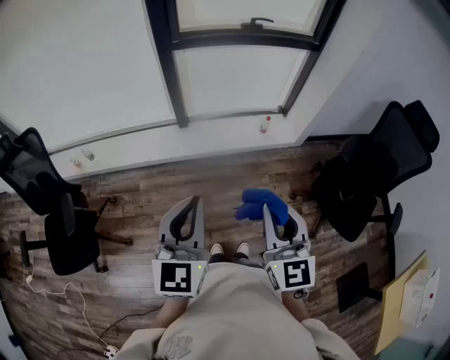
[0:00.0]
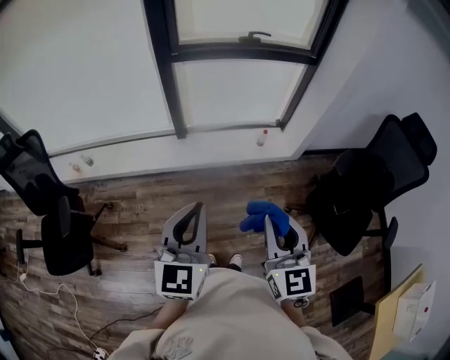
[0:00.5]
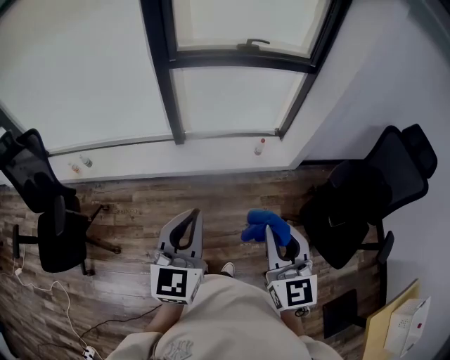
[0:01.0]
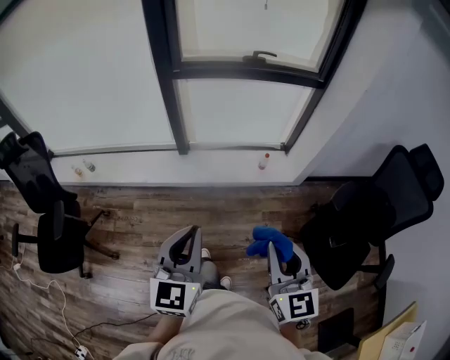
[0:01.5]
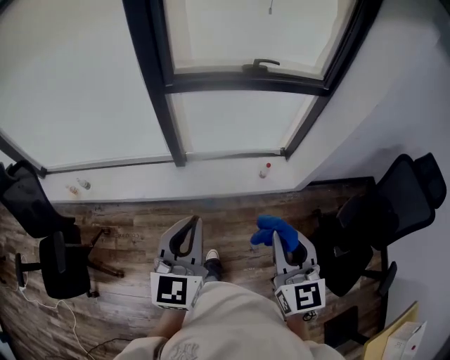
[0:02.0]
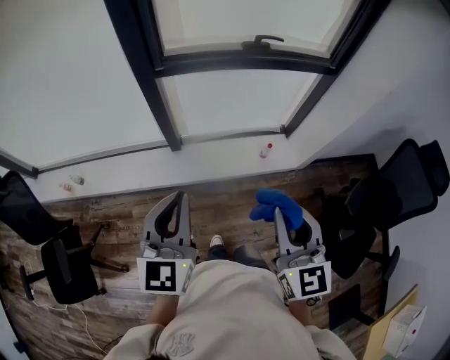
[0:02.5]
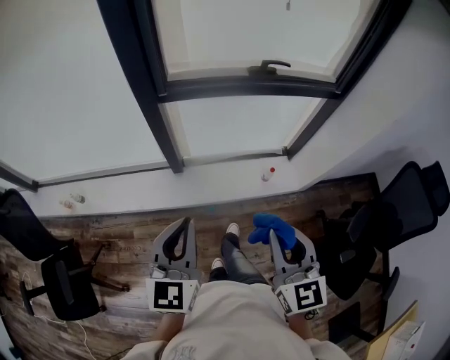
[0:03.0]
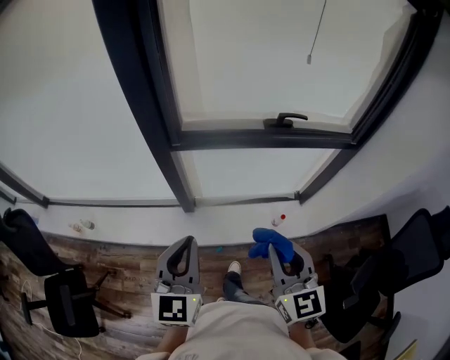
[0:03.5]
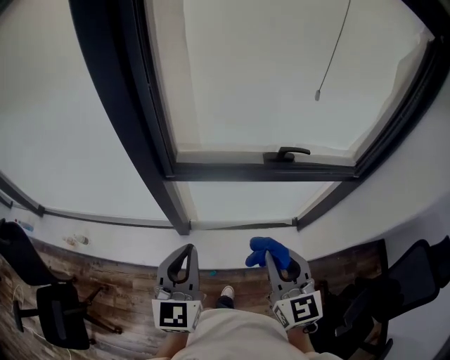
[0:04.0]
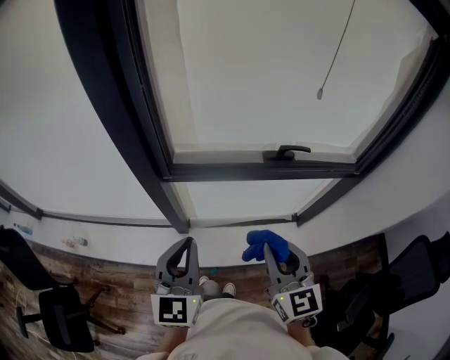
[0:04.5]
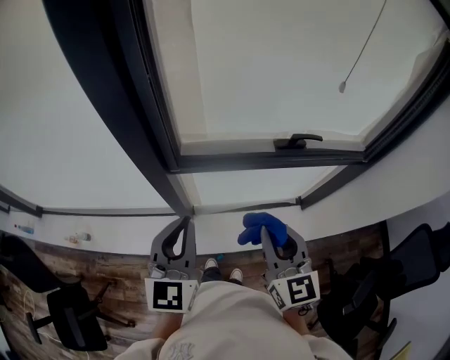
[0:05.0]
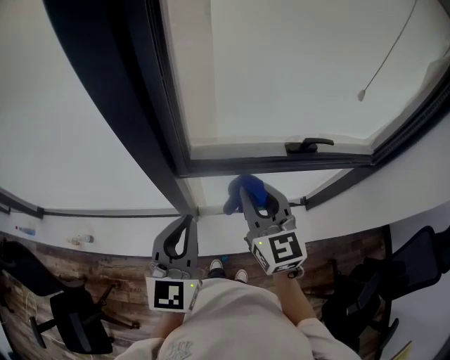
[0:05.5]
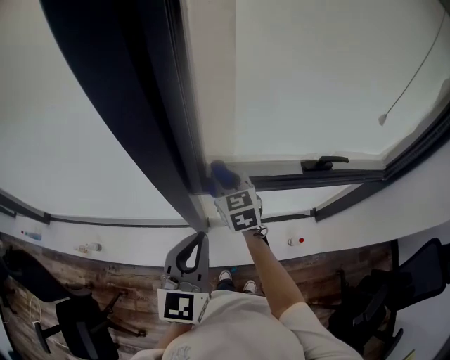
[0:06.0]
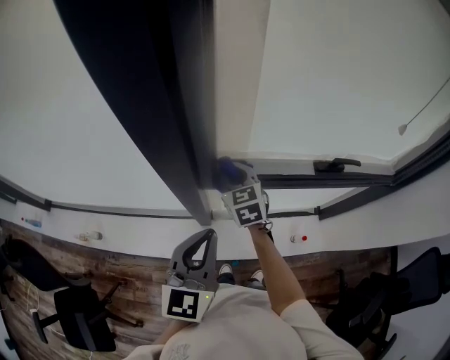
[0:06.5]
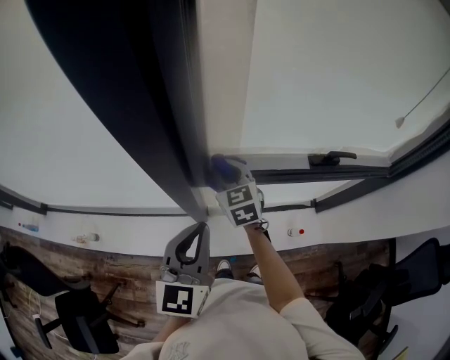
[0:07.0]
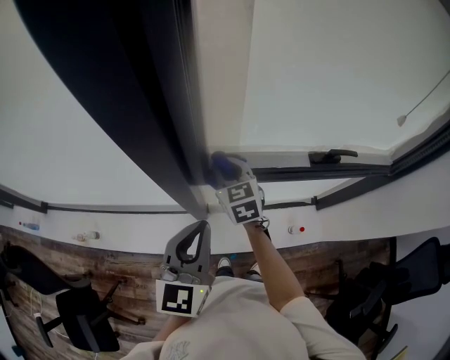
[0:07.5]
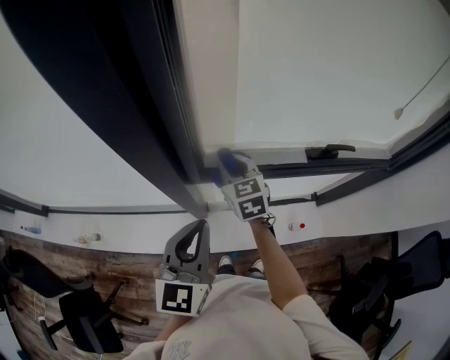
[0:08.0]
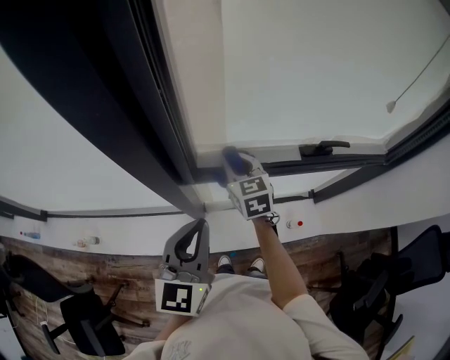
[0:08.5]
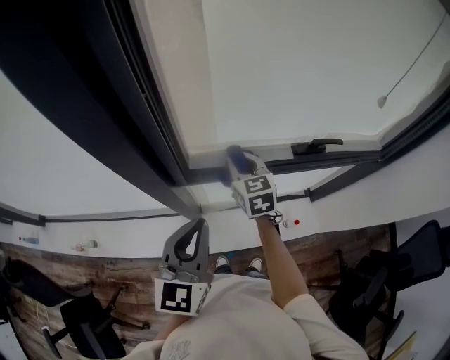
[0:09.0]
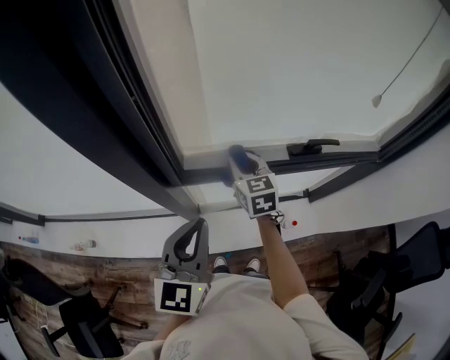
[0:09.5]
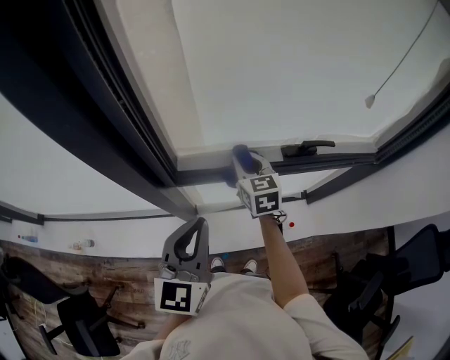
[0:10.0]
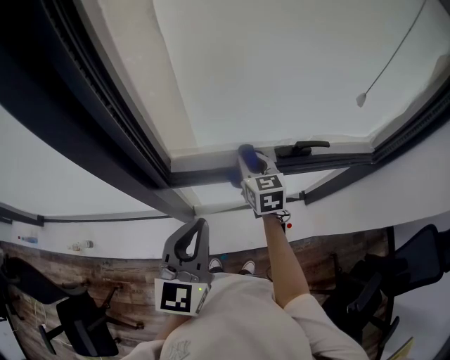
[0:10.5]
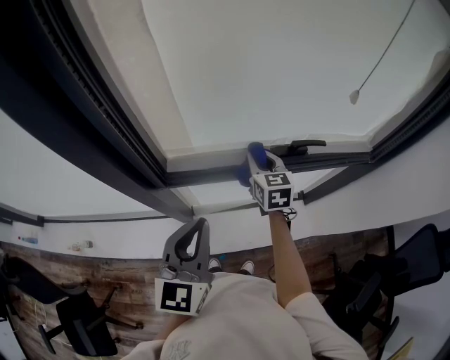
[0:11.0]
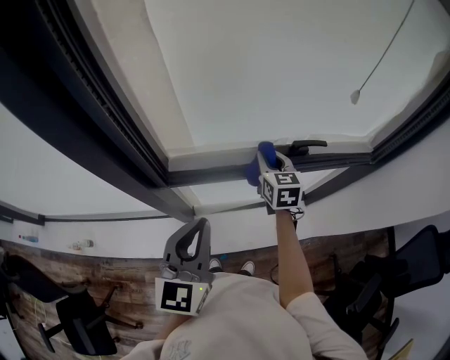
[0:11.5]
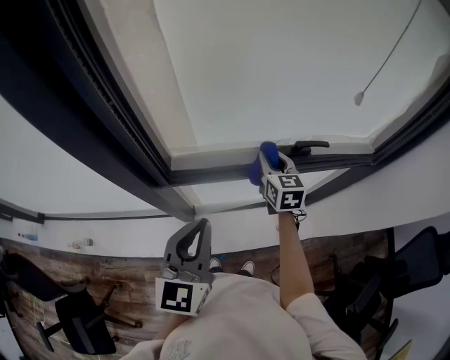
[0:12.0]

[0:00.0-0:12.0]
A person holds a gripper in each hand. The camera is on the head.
0:00.0 to 0:02.0: The right gripper shifts about 20 cm forward and to the right, while the left gripper moves forward, about 20 cm.
0:02.0 to 0:04.0: Both grippers move forward, roughly 35 cm.
0:04.0 to 0:06.0: The right gripper is displaced forward and to the left by some 40 cm. Meanwhile the left gripper is displaced forward and to the left by some 15 cm.
0:06.0 to 0:08.0: The grippers make only small movements.
0:08.0 to 0:10.0: The left gripper moves to the right, some 5 cm, while the right gripper heads to the right, covering roughly 15 cm.
0:10.0 to 0:12.0: The right gripper goes approximately 10 cm to the right.

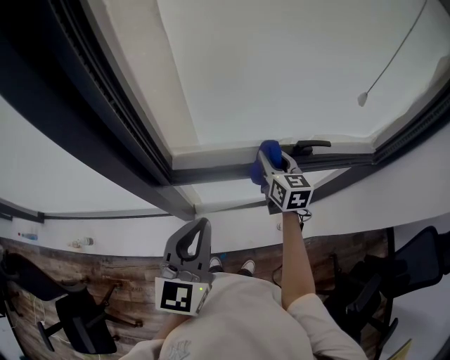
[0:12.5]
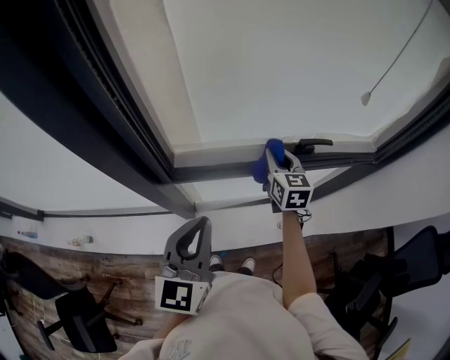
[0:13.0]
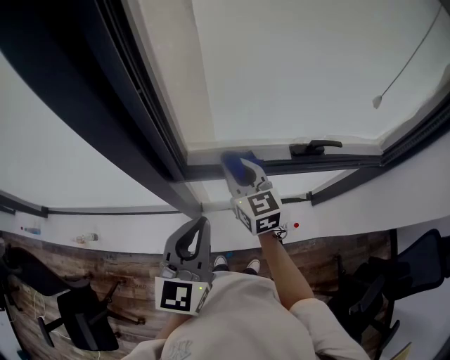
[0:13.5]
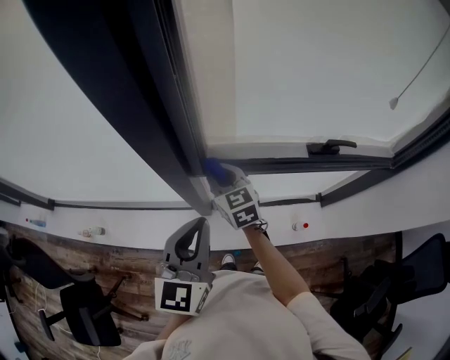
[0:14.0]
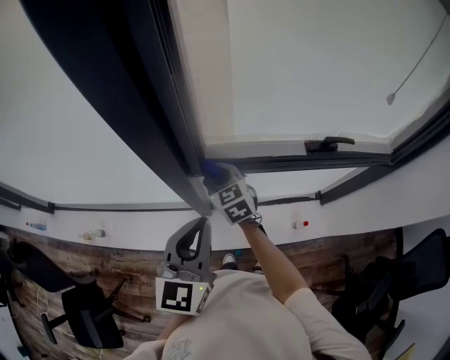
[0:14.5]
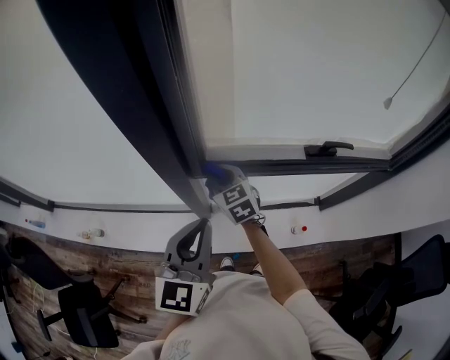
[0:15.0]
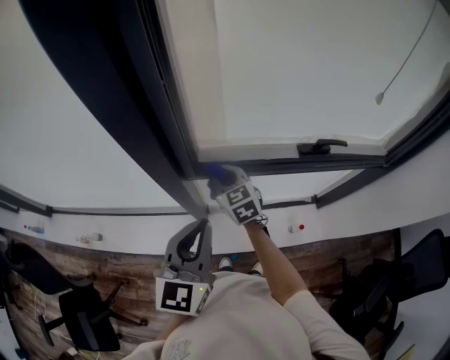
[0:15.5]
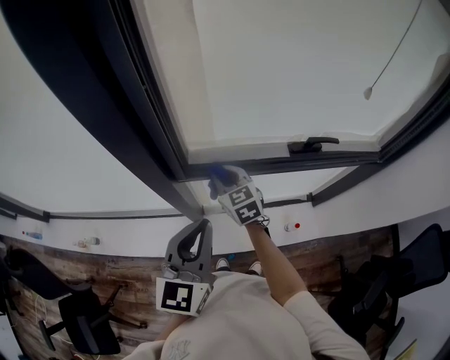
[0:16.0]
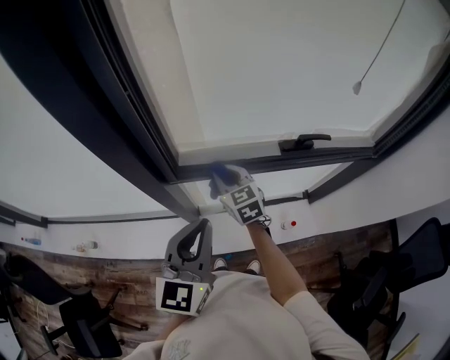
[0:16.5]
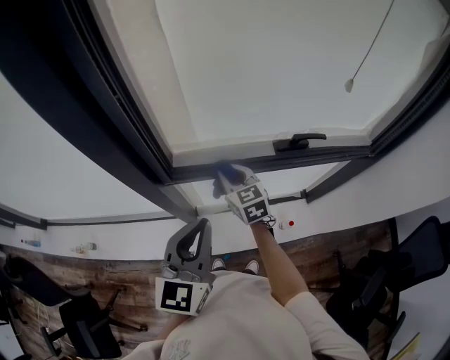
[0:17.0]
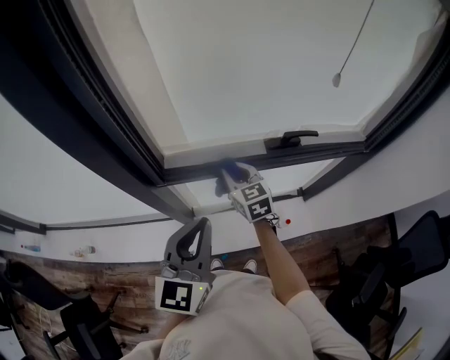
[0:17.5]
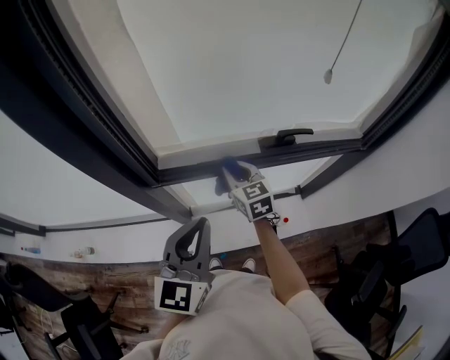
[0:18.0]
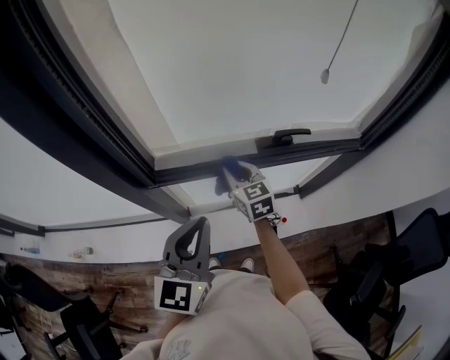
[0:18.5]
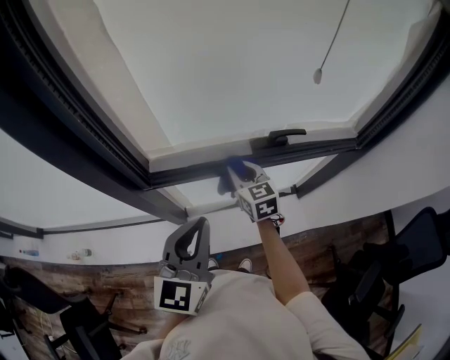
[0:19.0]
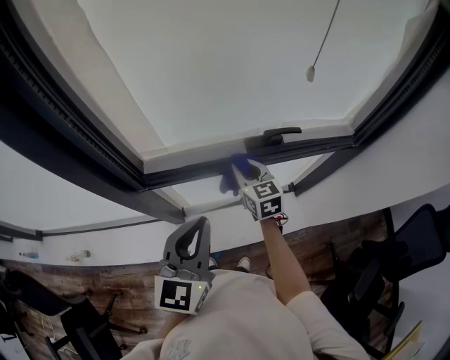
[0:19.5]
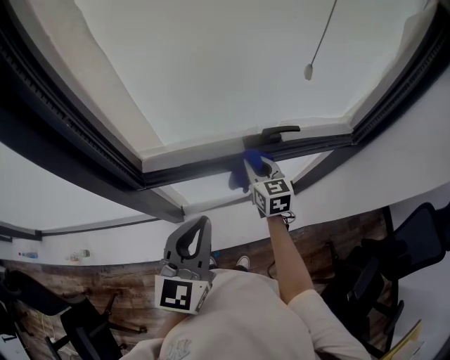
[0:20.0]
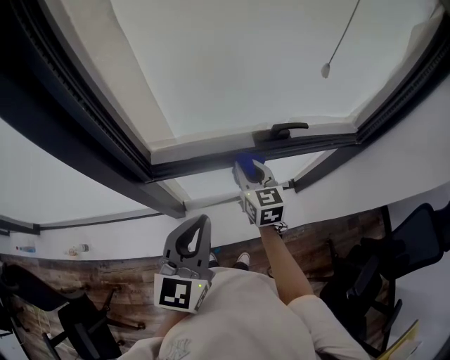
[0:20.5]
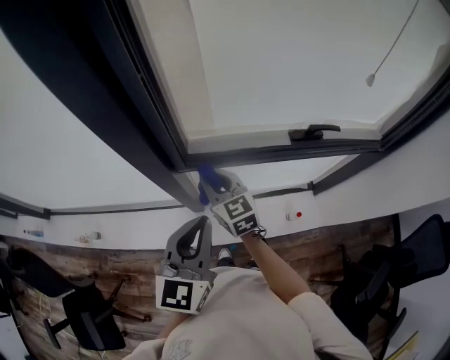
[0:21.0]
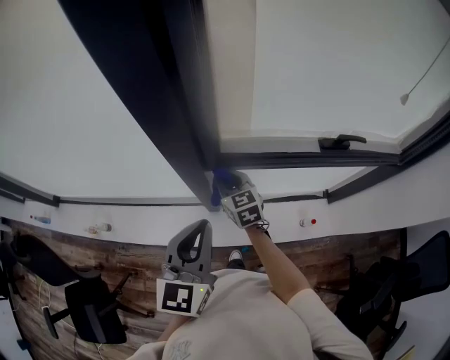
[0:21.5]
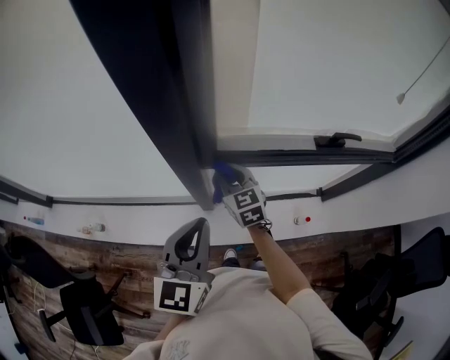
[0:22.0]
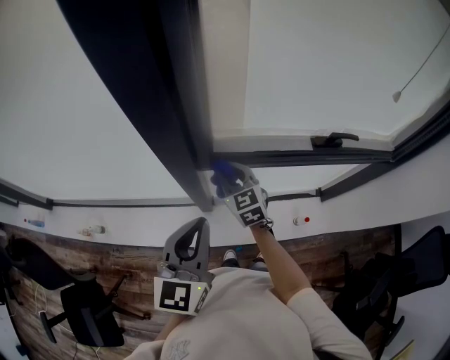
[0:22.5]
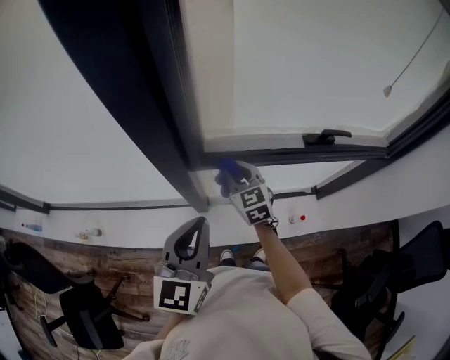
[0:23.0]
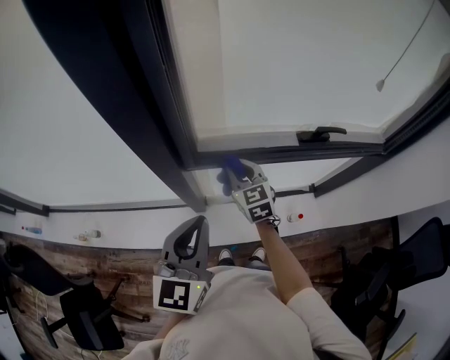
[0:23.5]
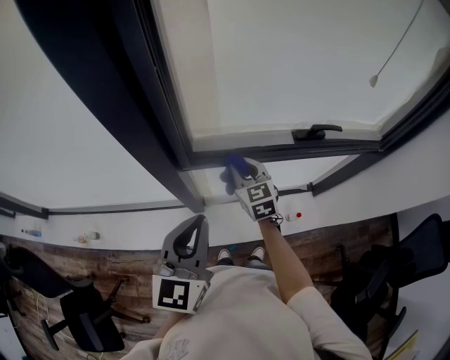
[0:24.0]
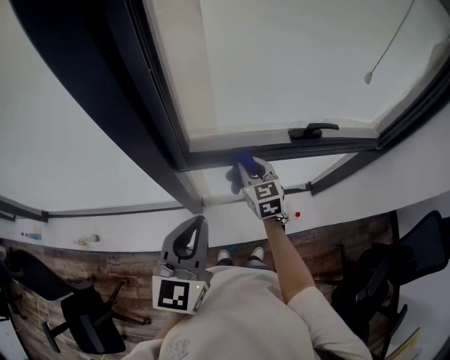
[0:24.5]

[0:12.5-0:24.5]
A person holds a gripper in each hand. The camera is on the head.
0:12.5 to 0:14.5: The right gripper goes approximately 25 cm to the left, and changes its angle by some 30 degrees, while the left gripper goes approximately 10 cm to the left.
0:14.5 to 0:16.5: The right gripper shifts approximately 10 cm to the right; the left gripper goes some 5 cm to the right.
0:16.5 to 0:18.5: The left gripper shifts approximately 5 cm to the right. The right gripper travels to the right by about 10 cm.
0:20.5 to 0:22.5: The two grippers go approximately 20 cm to the left. The right gripper changes its angle by about 20 degrees.
0:22.5 to 0:24.5: The right gripper goes approximately 15 cm to the right; the left gripper is displaced to the right by about 5 cm.

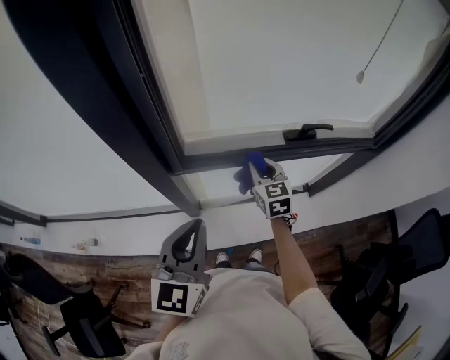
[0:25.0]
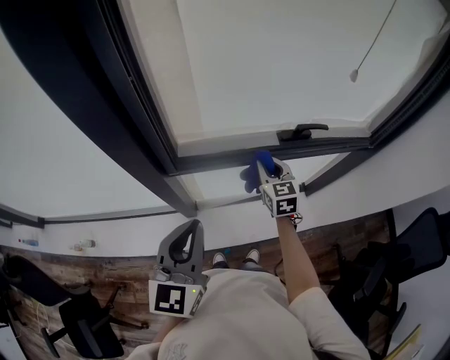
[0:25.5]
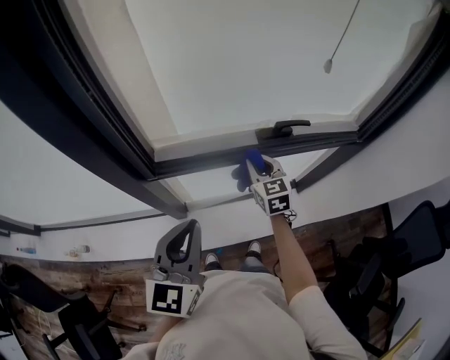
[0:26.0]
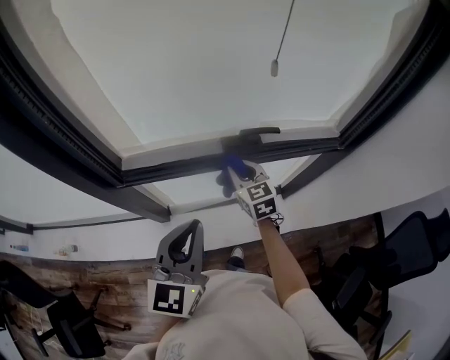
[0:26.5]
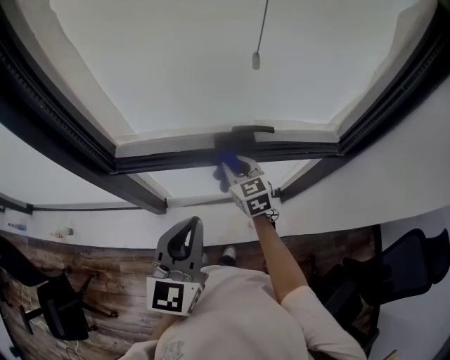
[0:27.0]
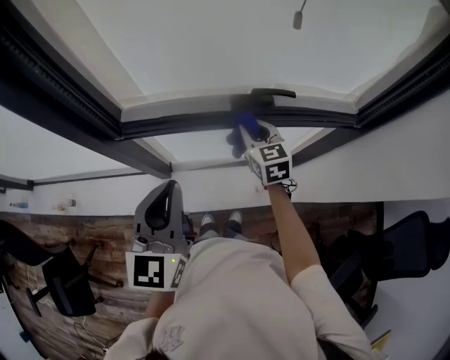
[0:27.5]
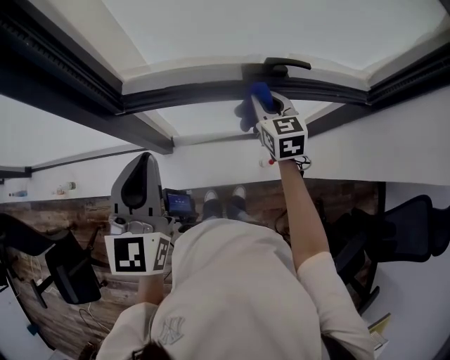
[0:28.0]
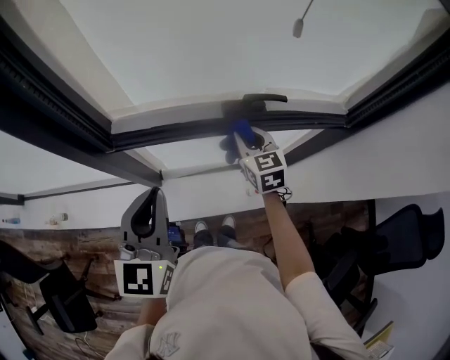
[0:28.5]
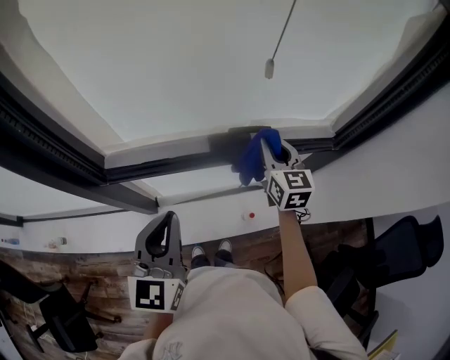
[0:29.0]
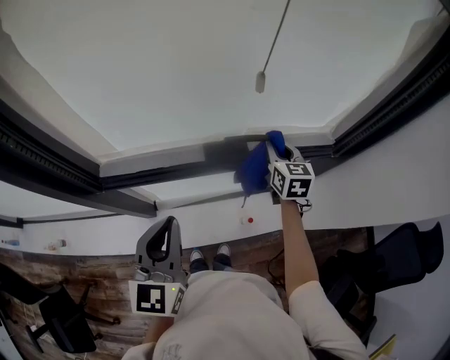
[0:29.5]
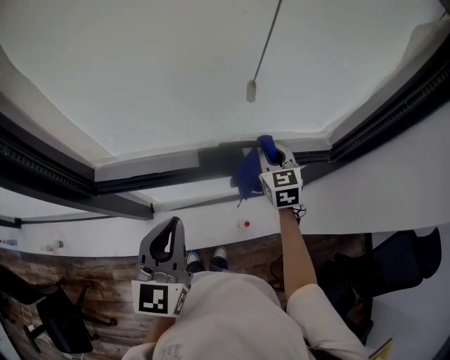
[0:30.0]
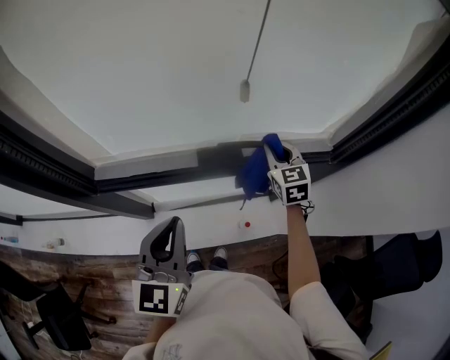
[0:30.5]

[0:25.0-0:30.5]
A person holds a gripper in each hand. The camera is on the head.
0:25.0 to 0:27.0: The left gripper is displaced to the right by about 25 cm. The right gripper shifts about 15 cm to the right.
0:27.0 to 0:28.5: The left gripper heads to the left, covering roughly 10 cm.
0:28.5 to 0:30.5: The right gripper travels to the right and forward by about 20 cm. The left gripper goes about 10 cm to the right and forward.
